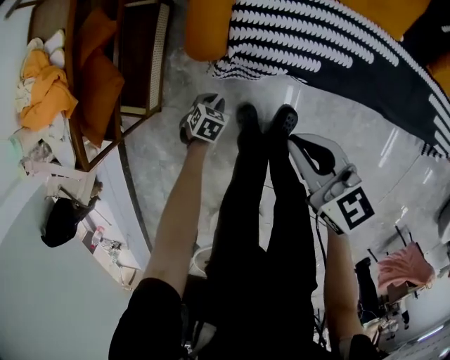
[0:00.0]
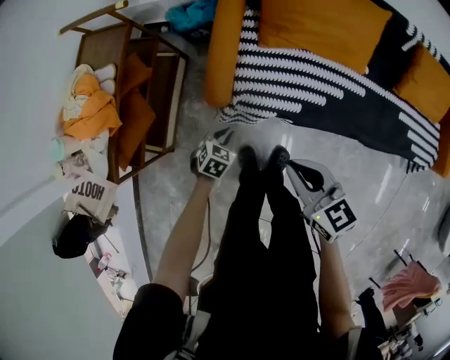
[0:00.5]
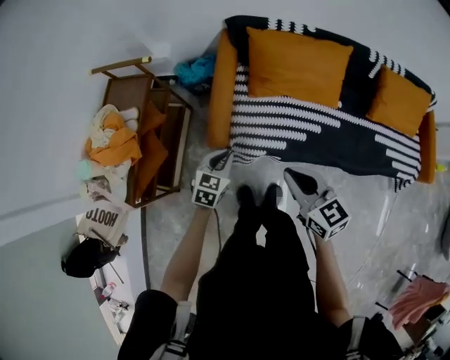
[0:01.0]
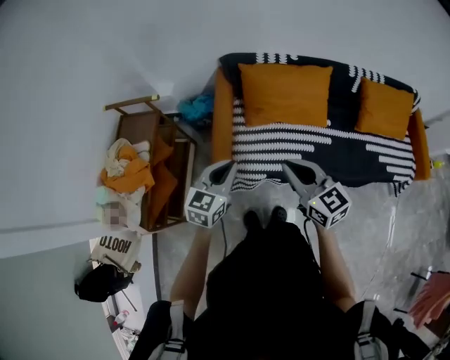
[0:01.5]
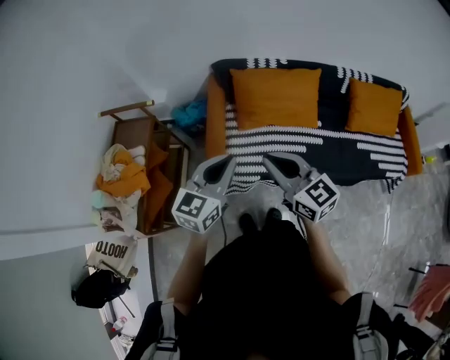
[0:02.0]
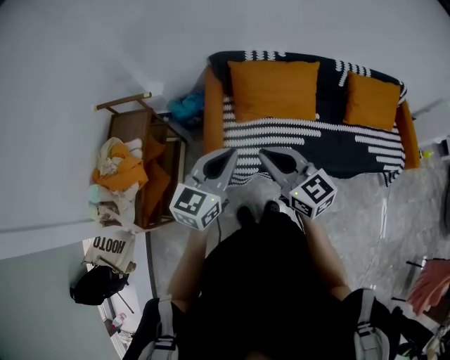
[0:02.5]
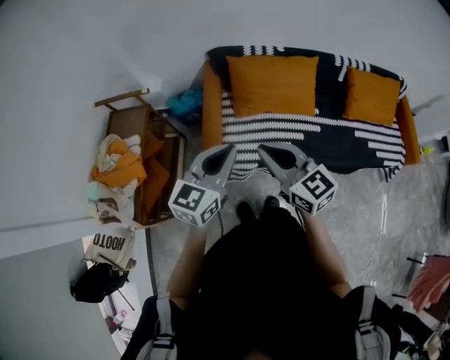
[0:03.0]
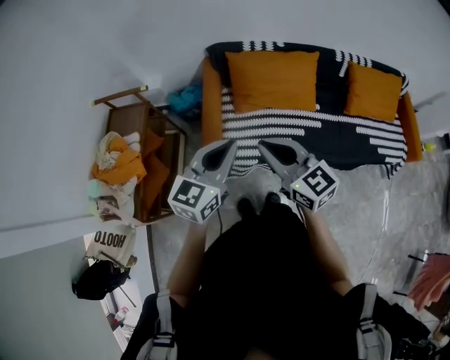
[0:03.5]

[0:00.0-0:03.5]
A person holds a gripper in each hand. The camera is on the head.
0:00.0 to 0:02.0: The left gripper shifts approximately 70 cm upward, and angles its fingers upward, by some 60 degrees. Meanwhile the right gripper travels upward by about 35 cm, and changes its angle by about 30 degrees.
0:02.0 to 0:03.5: There are only small adjustments of the grippers.

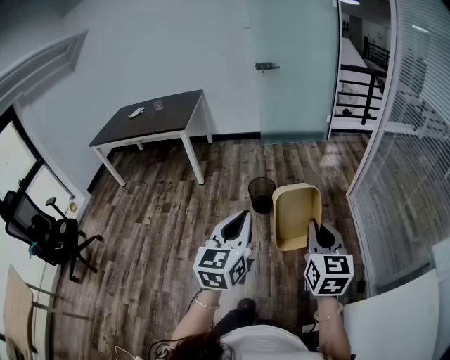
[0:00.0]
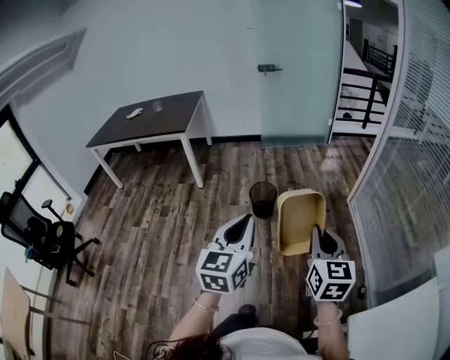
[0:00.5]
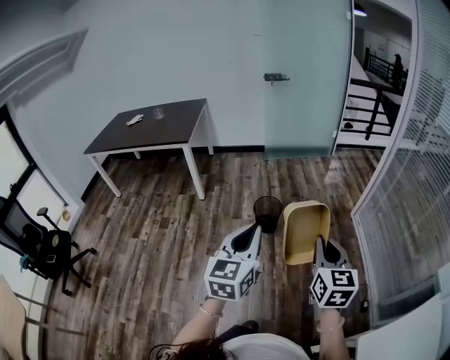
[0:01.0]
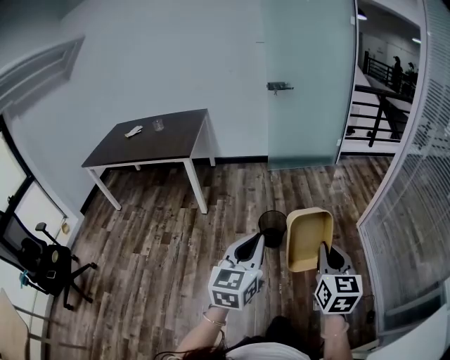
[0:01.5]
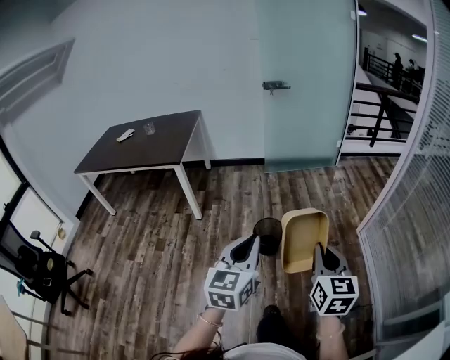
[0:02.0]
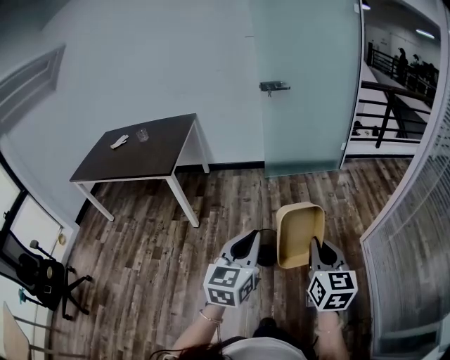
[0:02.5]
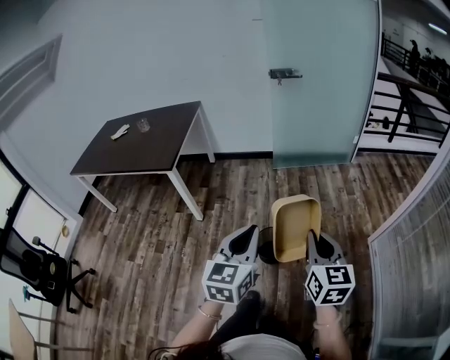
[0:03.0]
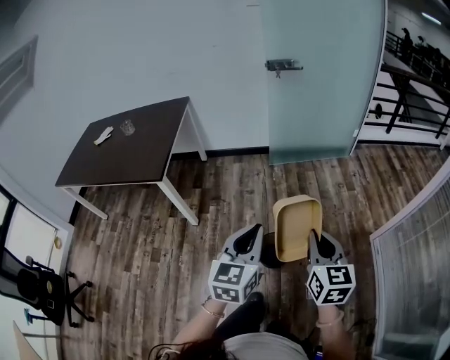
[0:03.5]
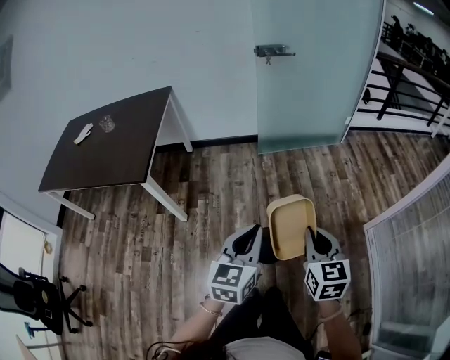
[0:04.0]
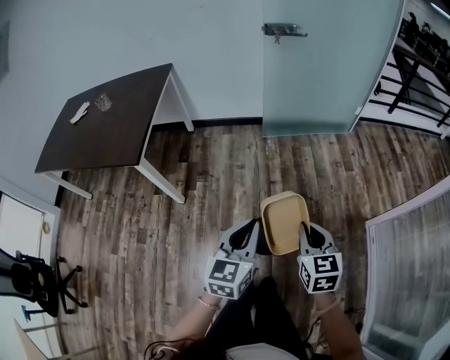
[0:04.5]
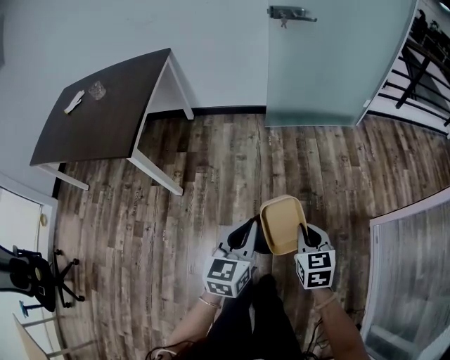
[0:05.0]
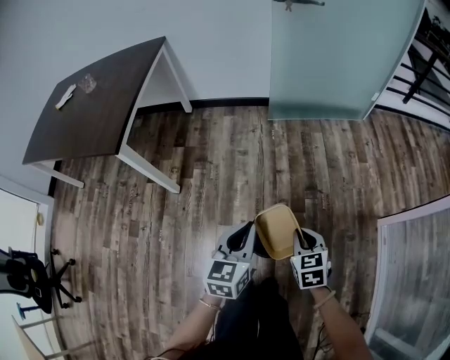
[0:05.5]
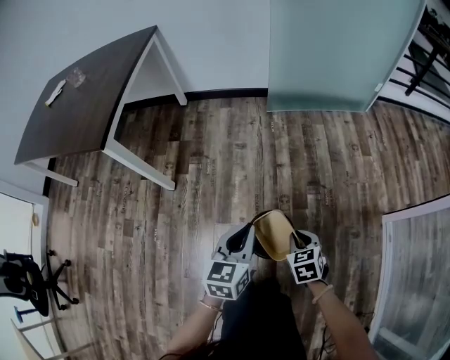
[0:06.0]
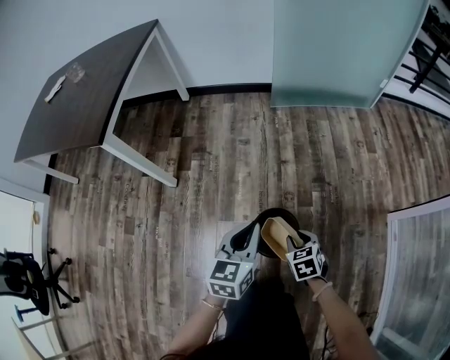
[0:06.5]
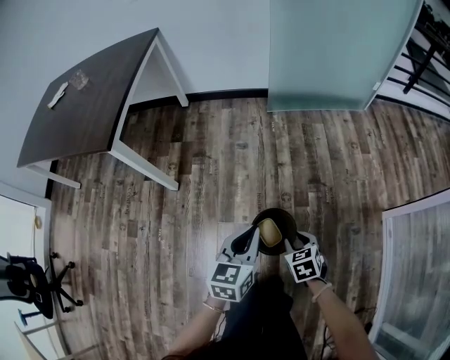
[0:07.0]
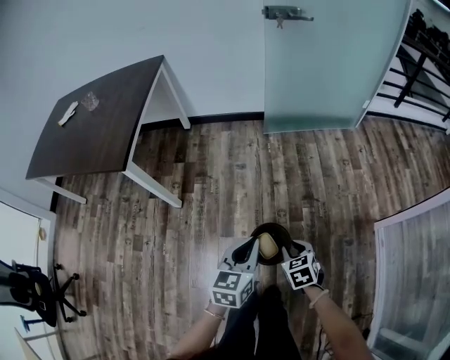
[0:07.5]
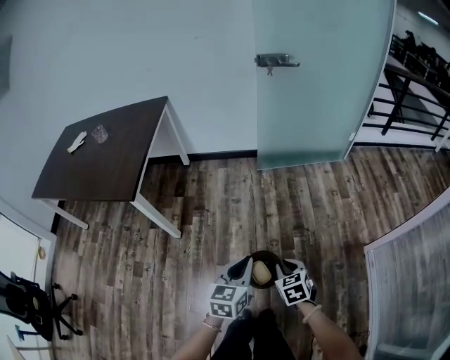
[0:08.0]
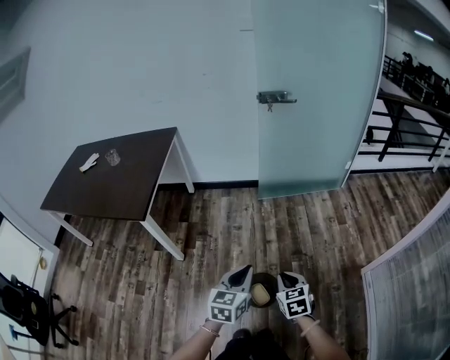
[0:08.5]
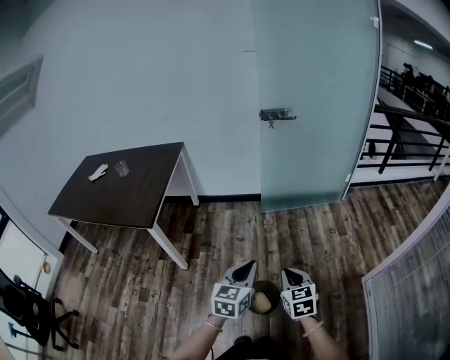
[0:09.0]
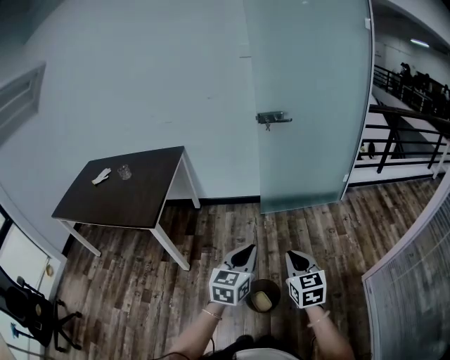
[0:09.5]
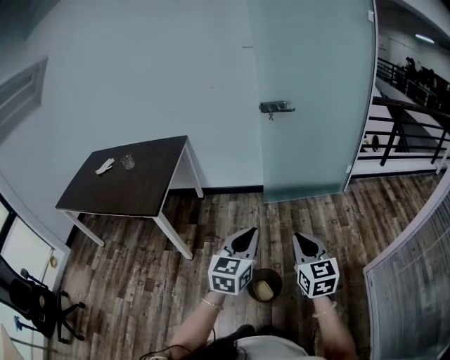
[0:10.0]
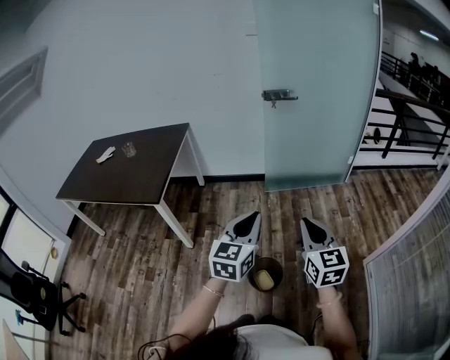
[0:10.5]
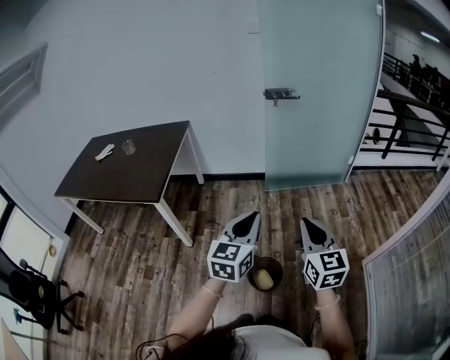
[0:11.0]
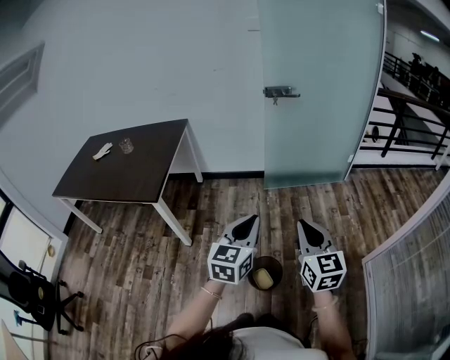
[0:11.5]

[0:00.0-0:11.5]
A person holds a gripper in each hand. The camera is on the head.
0:00.0 to 0:02.0: Both grippers travel together forward, approximately 35 cm.
0:02.0 to 0:04.0: Both grippers are carried forward, about 50 cm.
0:04.0 to 0:06.0: The left gripper goes approximately 40 cm downward and forward. Meanwhile the right gripper shifts about 50 cm downward, and tilts its fingers roughly 30 degrees downward.
0:06.0 to 0:07.5: The grippers both shift upward by roughly 15 cm.
0:07.5 to 0:09.5: Both grippers travel together upward, some 35 cm. The right gripper tips its fingers upward by approximately 40 degrees, and closes.
0:09.5 to 0:11.5: The right gripper moves upward, approximately 5 cm.

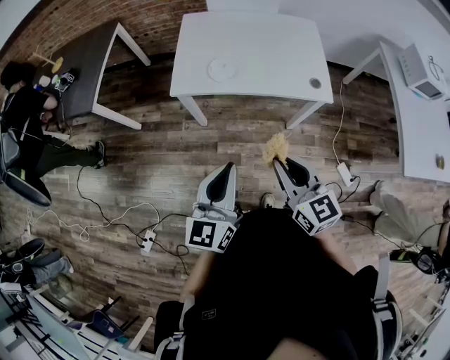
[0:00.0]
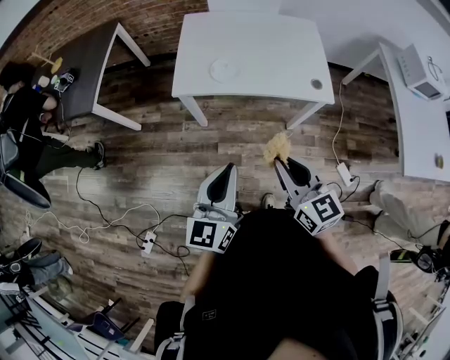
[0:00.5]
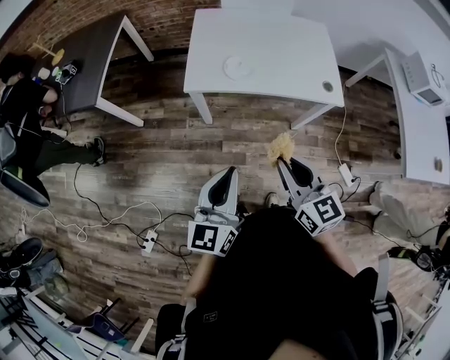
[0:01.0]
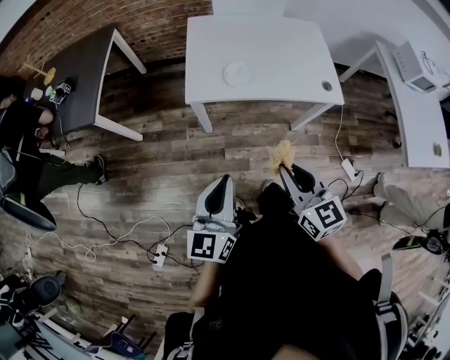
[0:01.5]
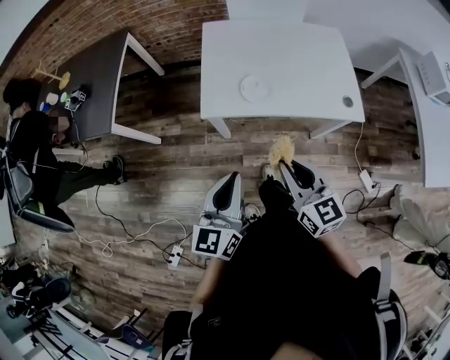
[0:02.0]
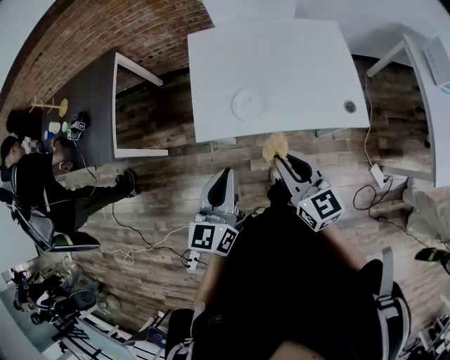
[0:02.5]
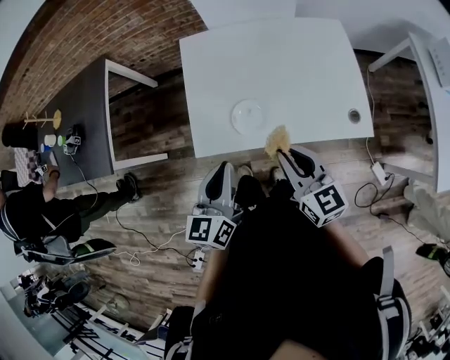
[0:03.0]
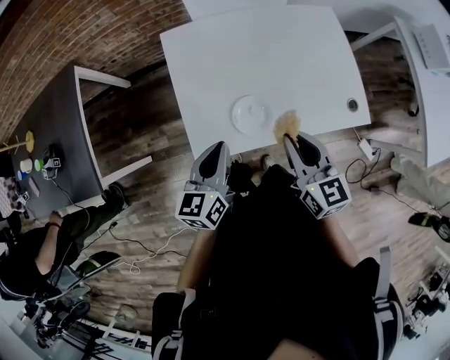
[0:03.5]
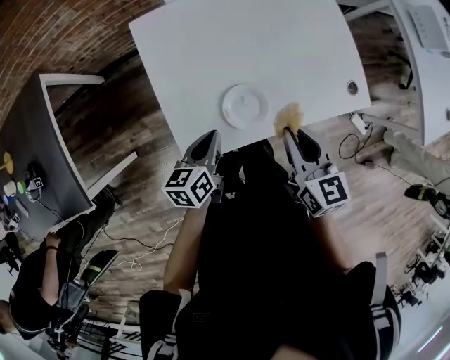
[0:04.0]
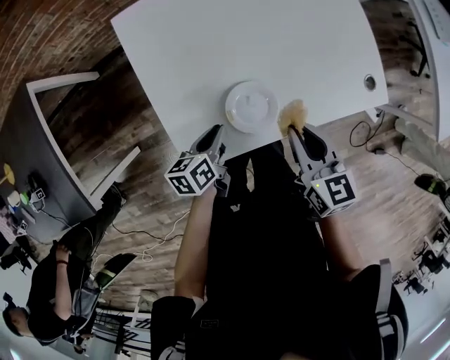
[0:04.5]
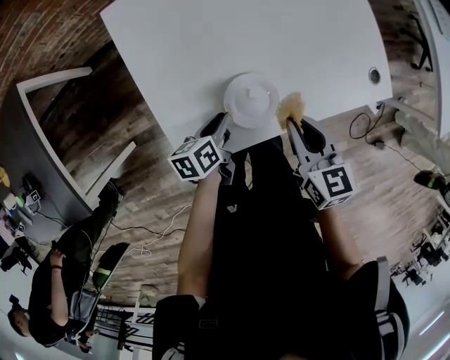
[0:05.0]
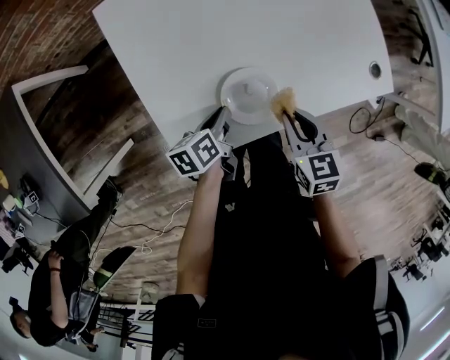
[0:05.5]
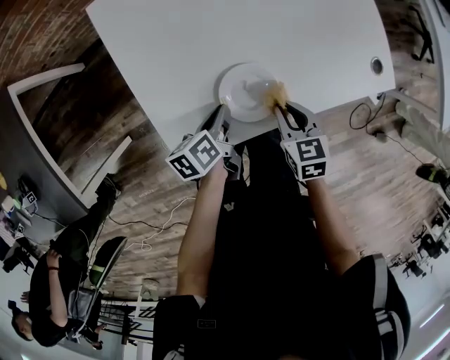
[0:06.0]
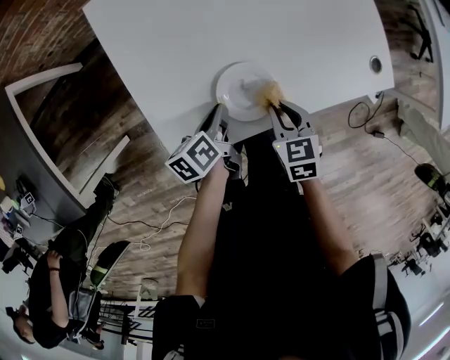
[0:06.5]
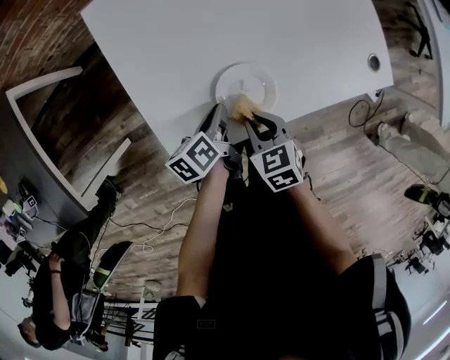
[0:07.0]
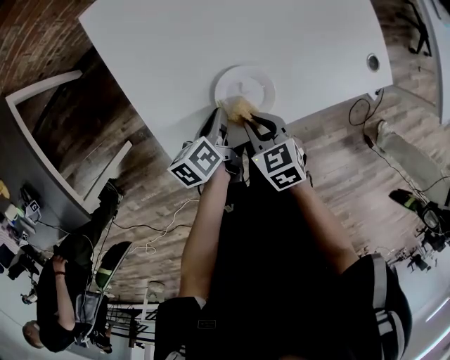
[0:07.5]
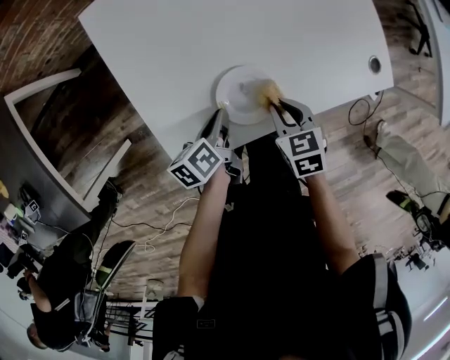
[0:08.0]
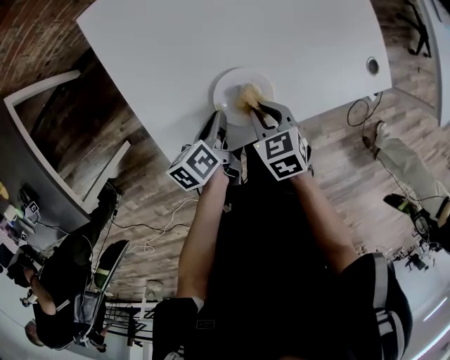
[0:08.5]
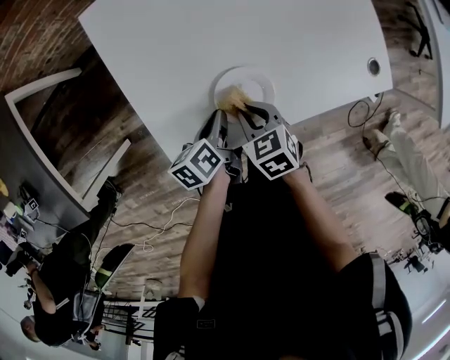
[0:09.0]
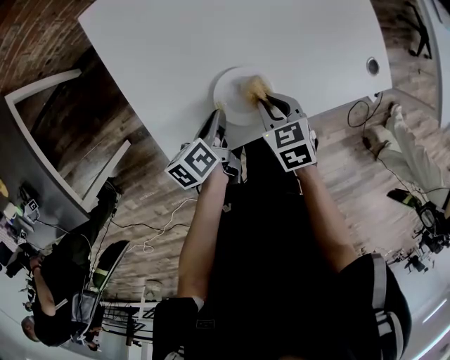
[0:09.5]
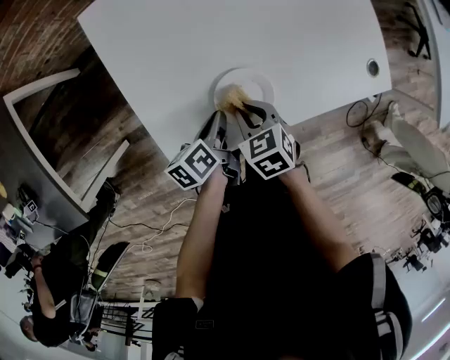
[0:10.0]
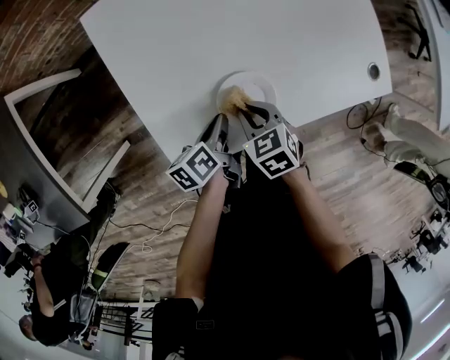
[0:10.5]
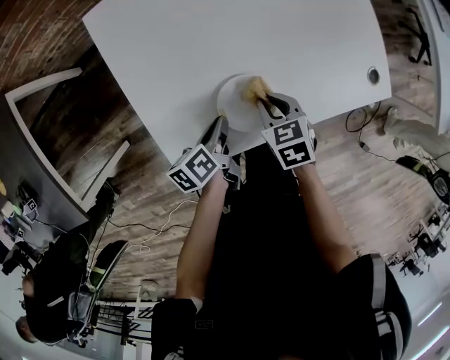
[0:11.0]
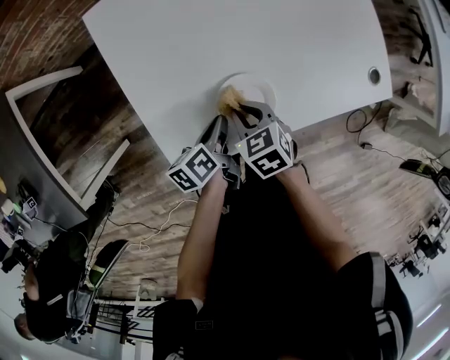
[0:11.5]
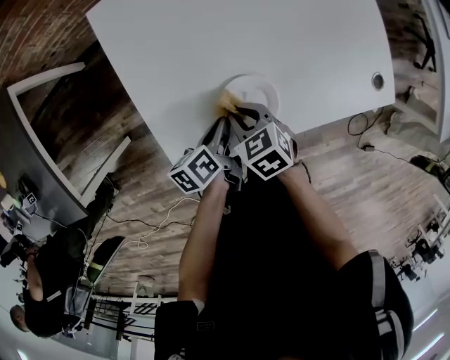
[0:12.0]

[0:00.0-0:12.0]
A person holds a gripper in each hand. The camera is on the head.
0:00.0 to 0:02.0: The two grippers go about 15 cm forward and to the left.
0:02.0 to 0:04.0: The right gripper moves approximately 30 cm, and turns by roughly 30 degrees; the left gripper shifts by some 40 cm, and changes its angle by about 40 degrees.
0:04.0 to 0:06.0: The left gripper heads downward, covering about 15 cm, and rotates some 30 degrees, while the right gripper goes some 20 cm downward, and turns by roughly 30 degrees.
0:06.0 to 0:08.0: The right gripper goes to the left and returns, about 10 cm each way.
0:08.0 to 0:10.0: The right gripper moves left and right over approximately 10 cm, changing direction 2 times.
0:10.0 to 0:12.0: The right gripper reaches approximately 5 cm to the right, then returns.
